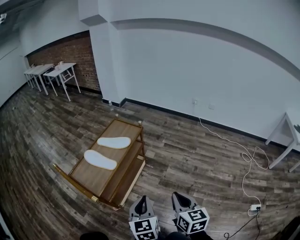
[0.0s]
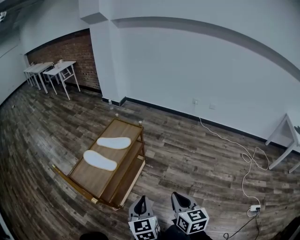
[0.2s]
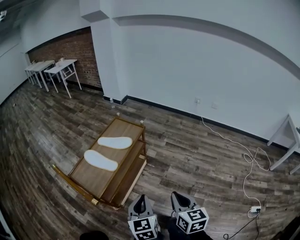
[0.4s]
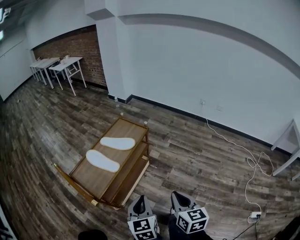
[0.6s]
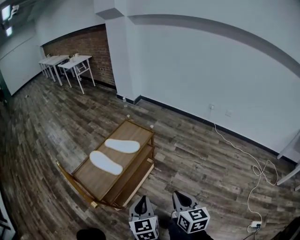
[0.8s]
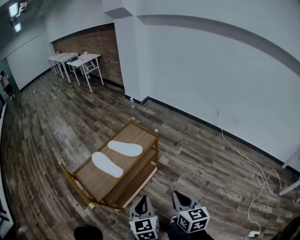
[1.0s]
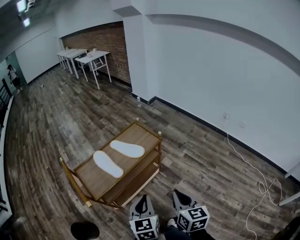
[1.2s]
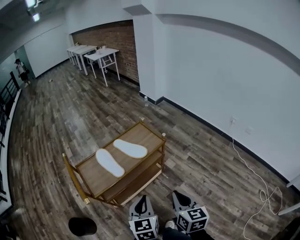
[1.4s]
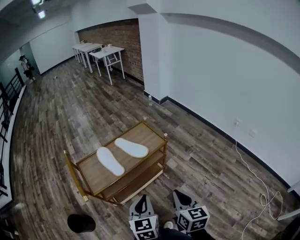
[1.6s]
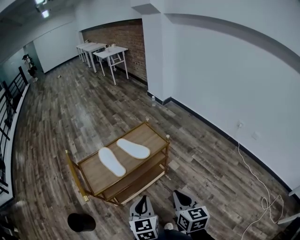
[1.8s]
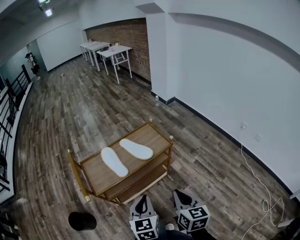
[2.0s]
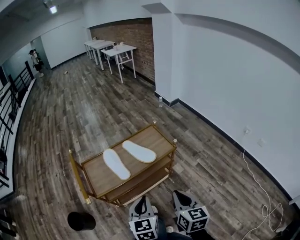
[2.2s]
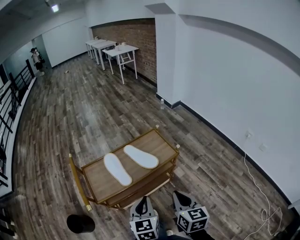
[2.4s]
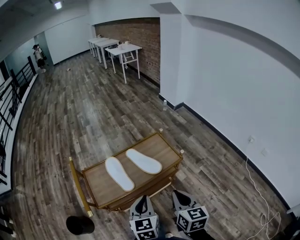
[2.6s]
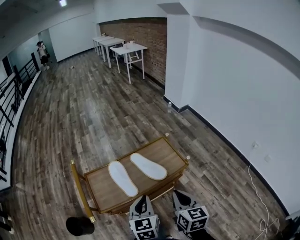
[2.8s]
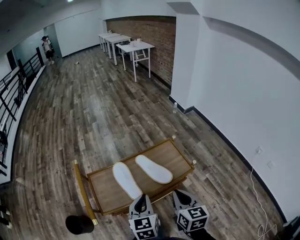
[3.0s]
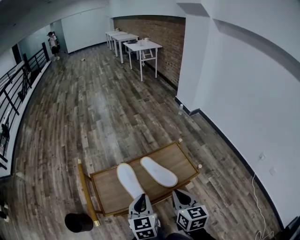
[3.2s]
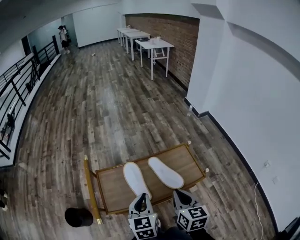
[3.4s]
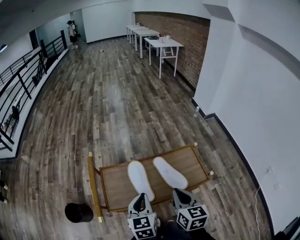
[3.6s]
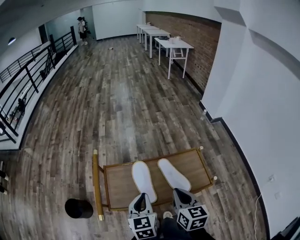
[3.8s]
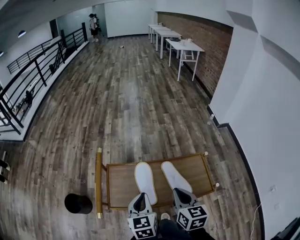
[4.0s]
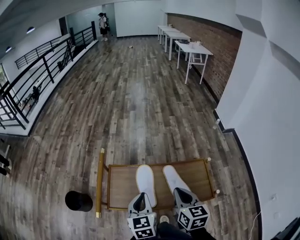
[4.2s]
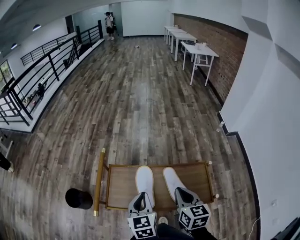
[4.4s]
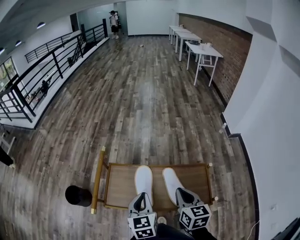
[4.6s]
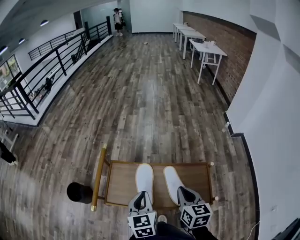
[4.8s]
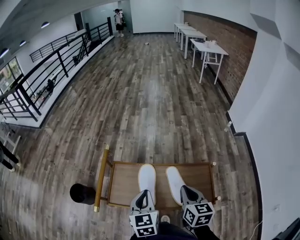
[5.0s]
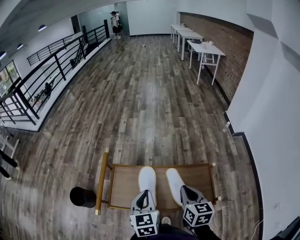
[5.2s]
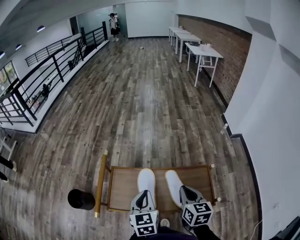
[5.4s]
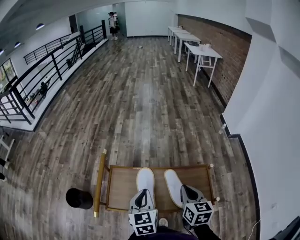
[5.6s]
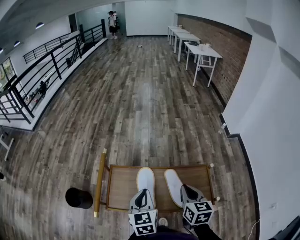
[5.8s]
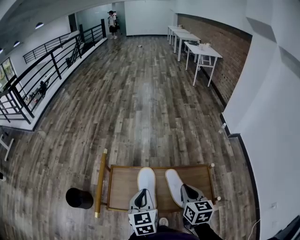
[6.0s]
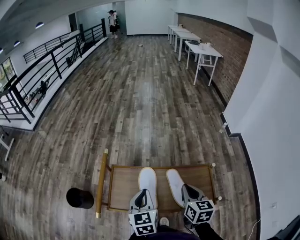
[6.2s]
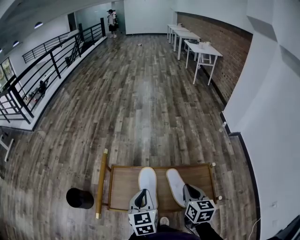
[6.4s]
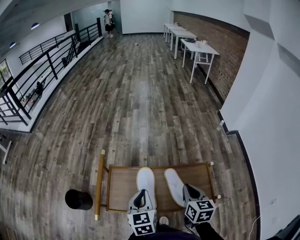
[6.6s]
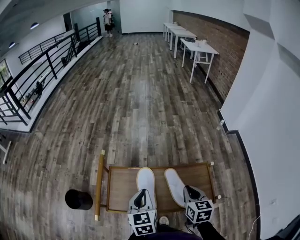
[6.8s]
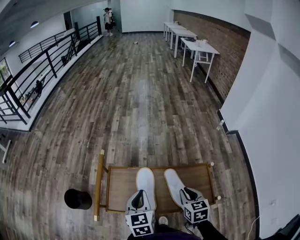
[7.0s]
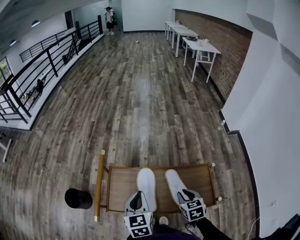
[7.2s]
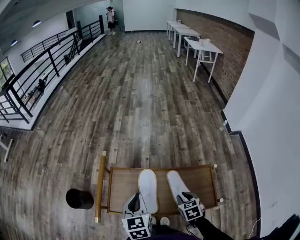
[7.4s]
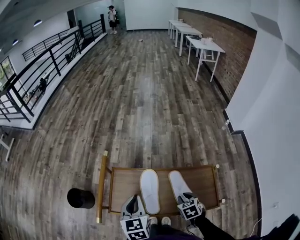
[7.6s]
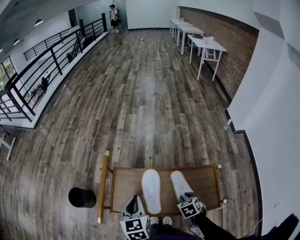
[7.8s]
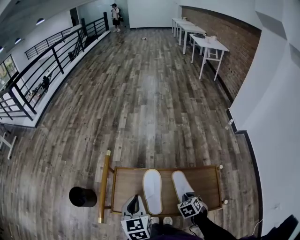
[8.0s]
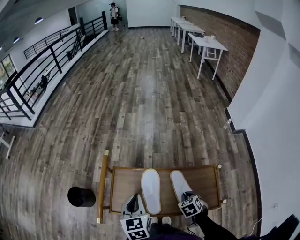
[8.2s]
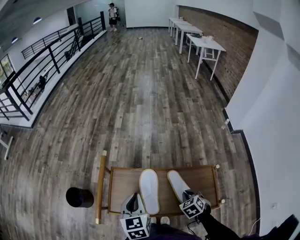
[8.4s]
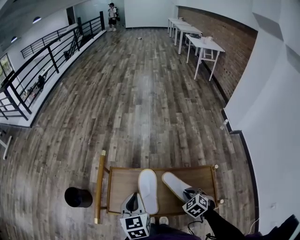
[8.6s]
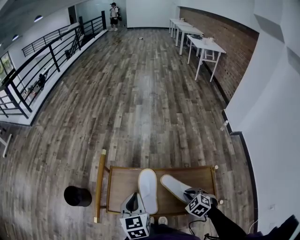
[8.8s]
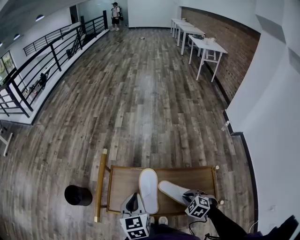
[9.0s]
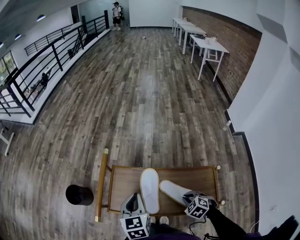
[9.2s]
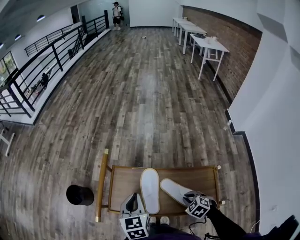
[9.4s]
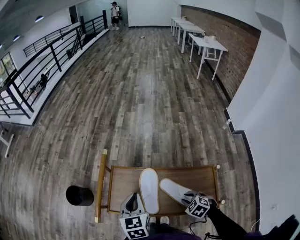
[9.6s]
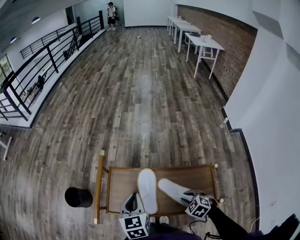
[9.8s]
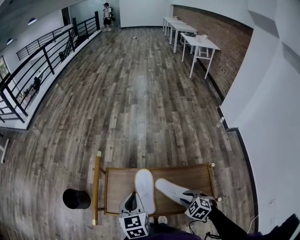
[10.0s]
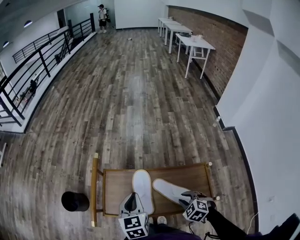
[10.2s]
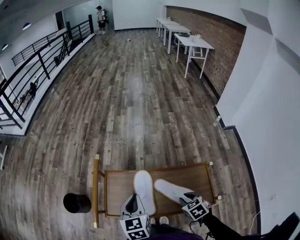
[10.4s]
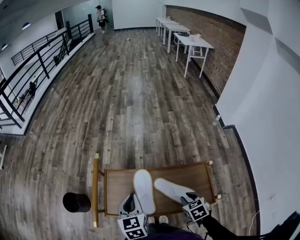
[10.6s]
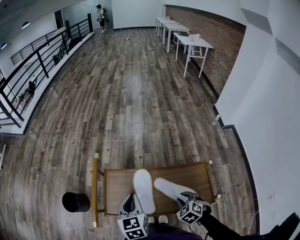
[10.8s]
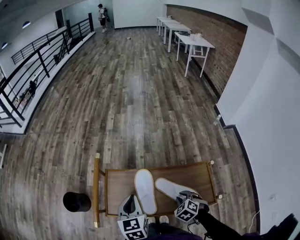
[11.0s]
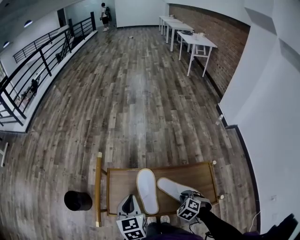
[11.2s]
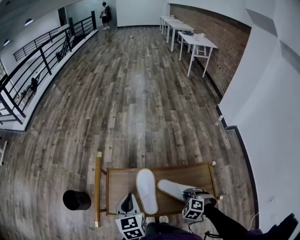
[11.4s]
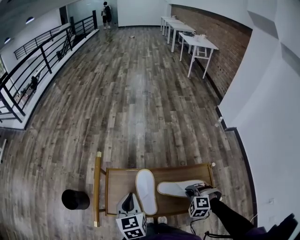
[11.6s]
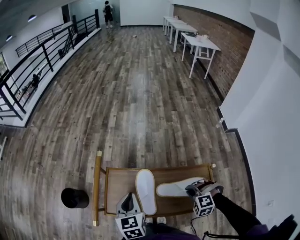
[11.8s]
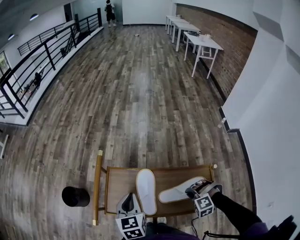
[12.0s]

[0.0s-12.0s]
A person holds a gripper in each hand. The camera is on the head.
0.0s to 1.6s: The left gripper changes place by some 15 cm, and swivels roughly 20 degrees. Meanwhile the right gripper ends up roughly 20 cm from where it was, and swivels roughly 20 degrees.
1.6s to 3.0s: Both grippers move forward, roughly 20 cm.
3.0s to 4.4s: The left gripper moves about 10 cm, and rotates approximately 30 degrees. Meanwhile the right gripper ends up some 15 cm from where it was, and rotates some 30 degrees.
4.4s to 6.0s: The grippers stay close to where they were, moving slightly.
6.0s to 7.6s: The left gripper changes place by approximately 5 cm, while the right gripper moves downward, about 20 cm, and tips its fingers downward by some 30 degrees.
7.6s to 9.0s: The right gripper rotates some 40 degrees.
9.0s to 10.4s: The right gripper swivels some 30 degrees.
10.4s to 12.0s: The right gripper rolls counterclockwise, seen from behind, by roughly 80 degrees.

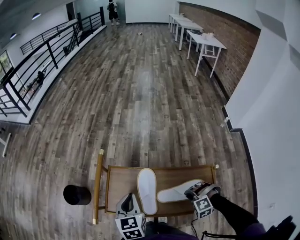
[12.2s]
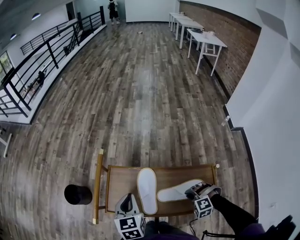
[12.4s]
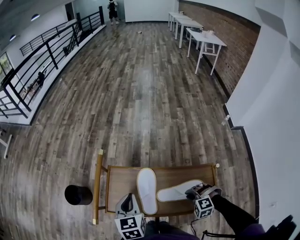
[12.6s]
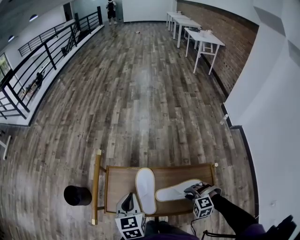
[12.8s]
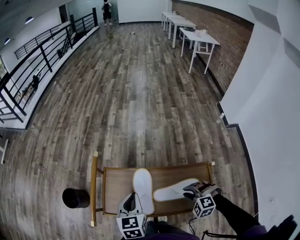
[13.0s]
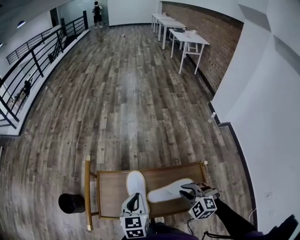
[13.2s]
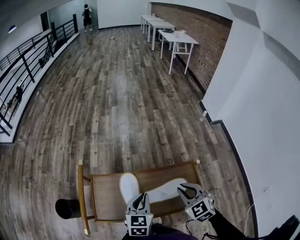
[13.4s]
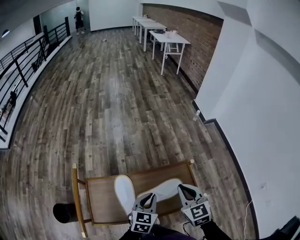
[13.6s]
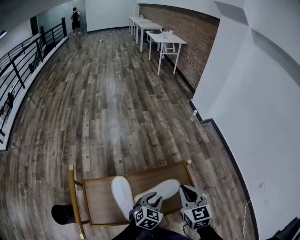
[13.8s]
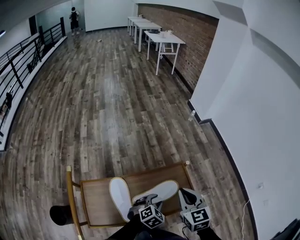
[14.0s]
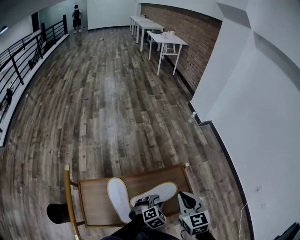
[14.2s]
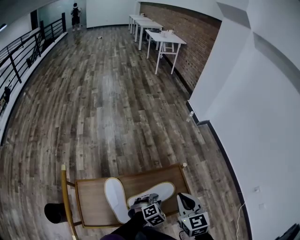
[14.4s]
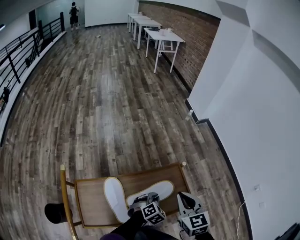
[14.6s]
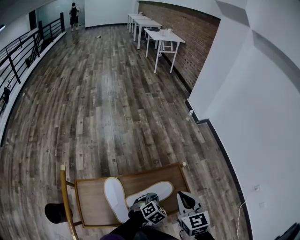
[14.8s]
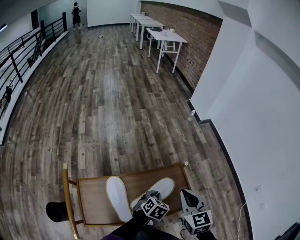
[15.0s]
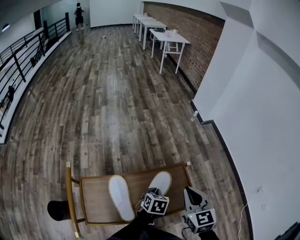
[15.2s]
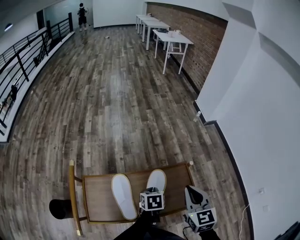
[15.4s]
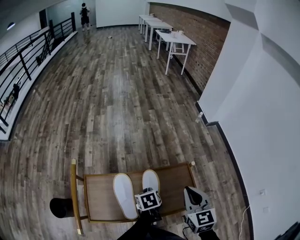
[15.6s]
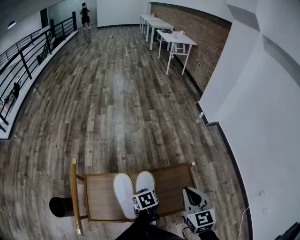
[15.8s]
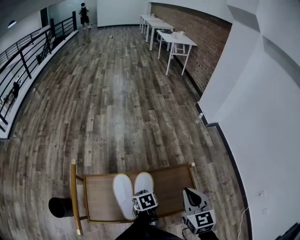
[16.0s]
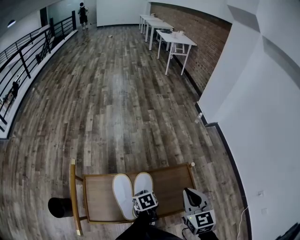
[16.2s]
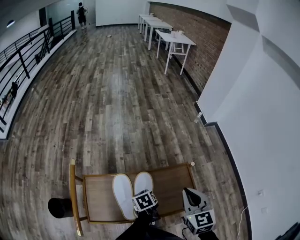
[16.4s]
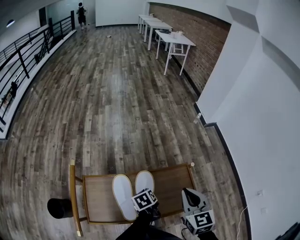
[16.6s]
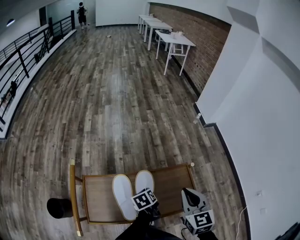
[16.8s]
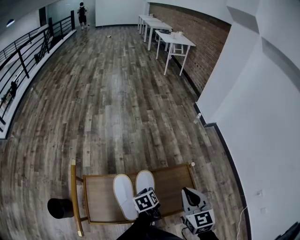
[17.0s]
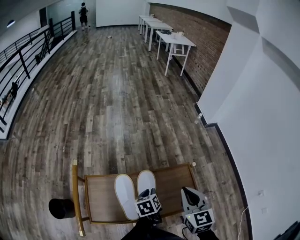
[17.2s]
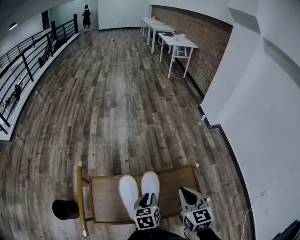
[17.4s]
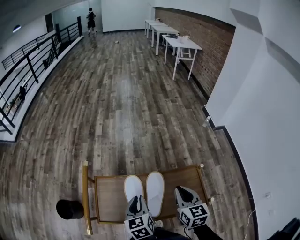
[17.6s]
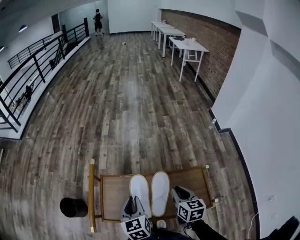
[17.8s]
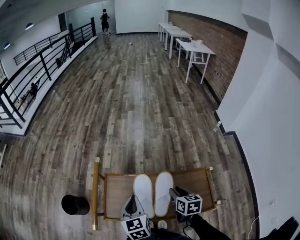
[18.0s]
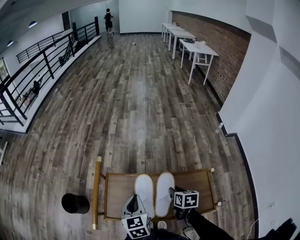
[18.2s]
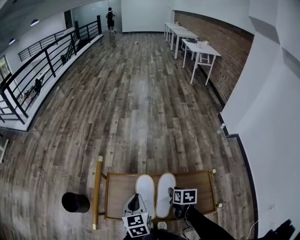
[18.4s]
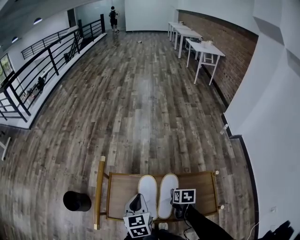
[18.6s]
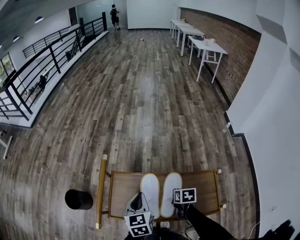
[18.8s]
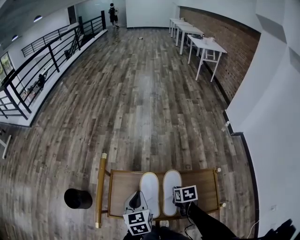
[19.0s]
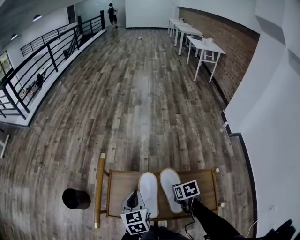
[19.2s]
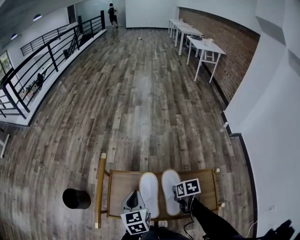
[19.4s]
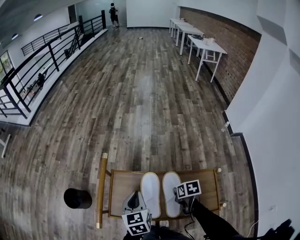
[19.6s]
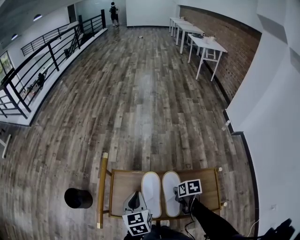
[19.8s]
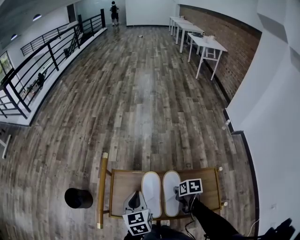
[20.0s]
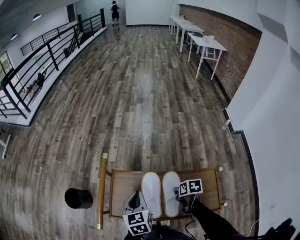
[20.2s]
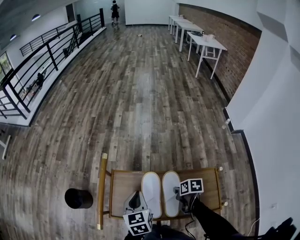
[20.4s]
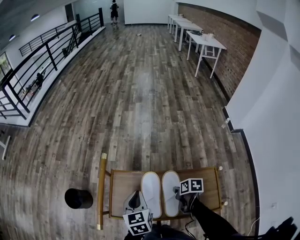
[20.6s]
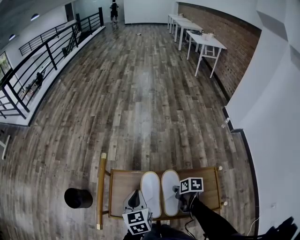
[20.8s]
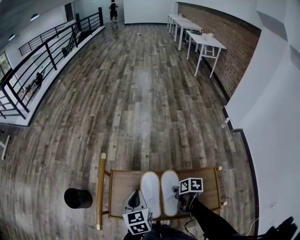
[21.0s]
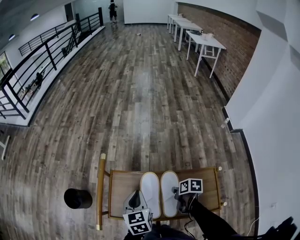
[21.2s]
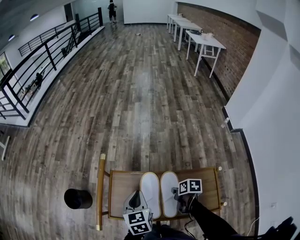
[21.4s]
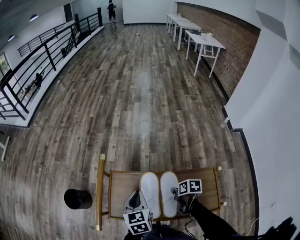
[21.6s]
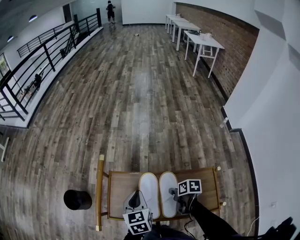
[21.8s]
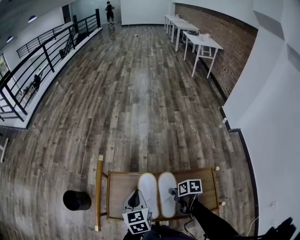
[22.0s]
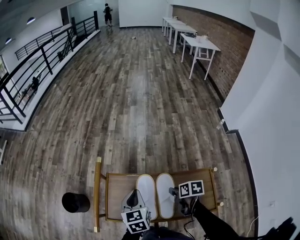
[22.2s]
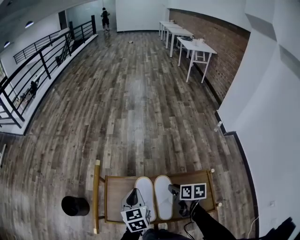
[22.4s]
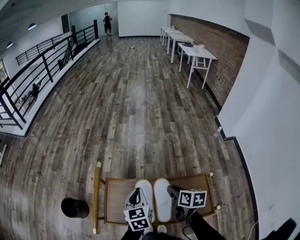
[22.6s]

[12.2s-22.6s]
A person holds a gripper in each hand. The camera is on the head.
12.2s to 13.6s: The right gripper is displaced upward by some 15 cm, and twists roughly 80 degrees clockwise, seen from behind, while the left gripper changes place by roughly 20 cm, and changes its angle by about 40 degrees.
13.6s to 15.2s: The left gripper shifts approximately 10 cm downward and forward, turns by about 20 degrees, and opens, then closes again, while the right gripper moves roughly 5 cm.
15.2s to 16.6s: The left gripper goes some 10 cm to the left, and rotates around the line of its fingers by some 50 degrees, counterclockwise from behind.
16.6s to 18.2s: The left gripper ends up approximately 20 cm from where it was, and changes its angle by roughly 40 degrees, while the right gripper heads downward, covering roughly 15 cm, turns by some 40 degrees, and opens up.
18.2s to 19.6s: The right gripper rotates roughly 20 degrees.
19.6s to 21.2s: There are only small adjustments of the grippers.
21.2s to 22.6s: The left gripper ends up about 5 cm from where it was; the right gripper heads upward, covering some 15 cm, changes its angle by approximately 30 degrees, and opens up.

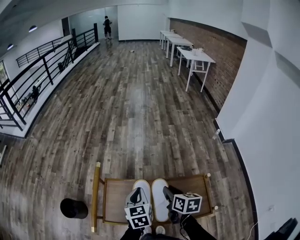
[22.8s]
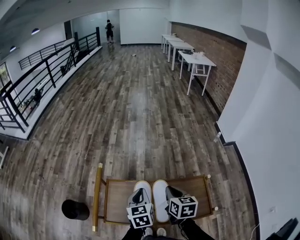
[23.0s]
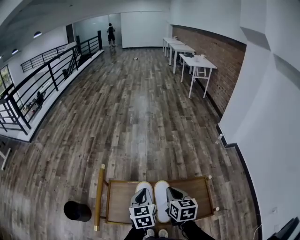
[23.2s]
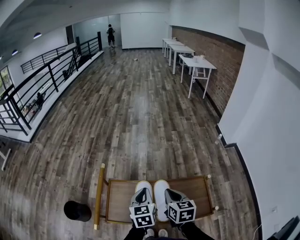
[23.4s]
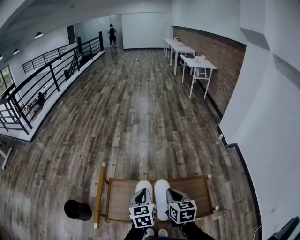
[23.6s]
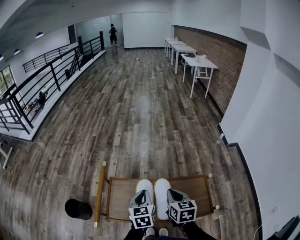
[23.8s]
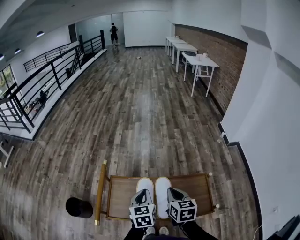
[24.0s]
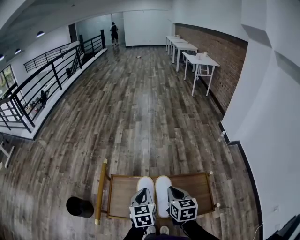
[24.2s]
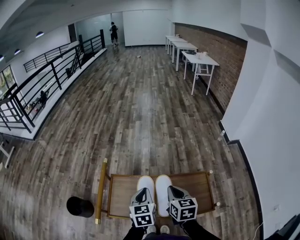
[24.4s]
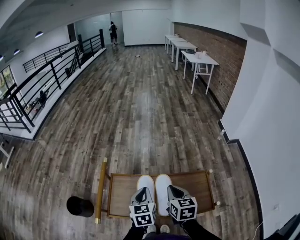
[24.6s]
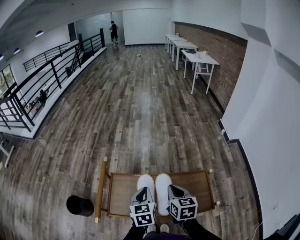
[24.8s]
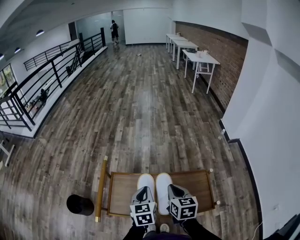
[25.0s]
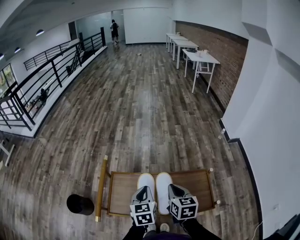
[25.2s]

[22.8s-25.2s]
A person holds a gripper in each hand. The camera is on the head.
22.8s to 24.0s: The right gripper shifts by some 5 cm, and closes.
24.0s to 25.2s: Neither gripper changes place.
